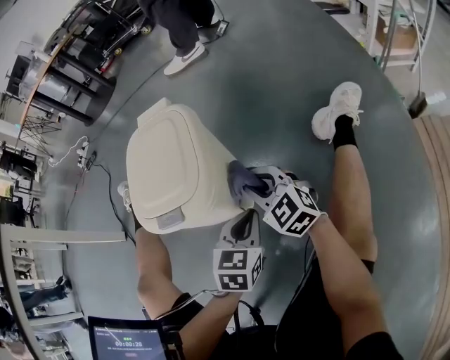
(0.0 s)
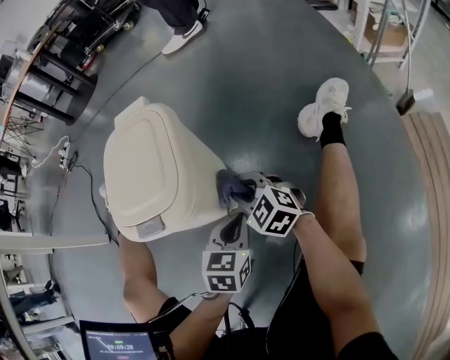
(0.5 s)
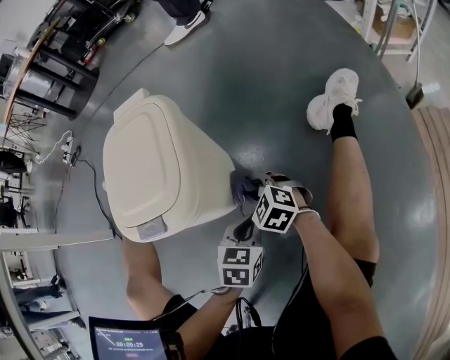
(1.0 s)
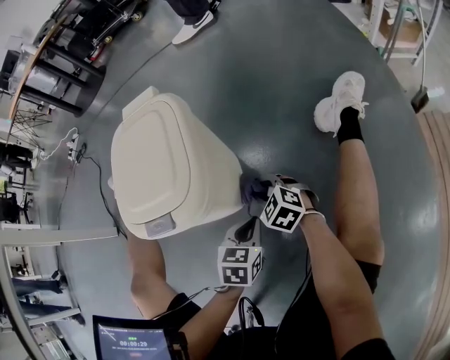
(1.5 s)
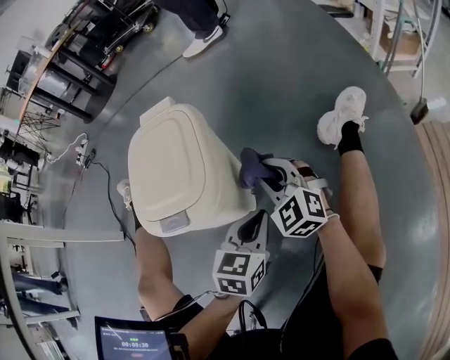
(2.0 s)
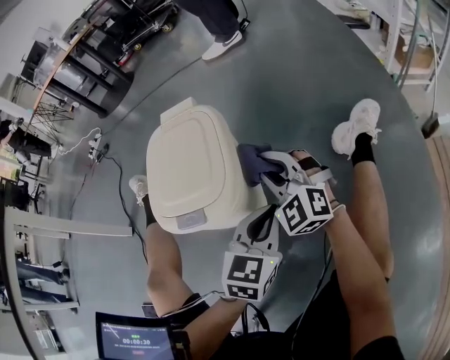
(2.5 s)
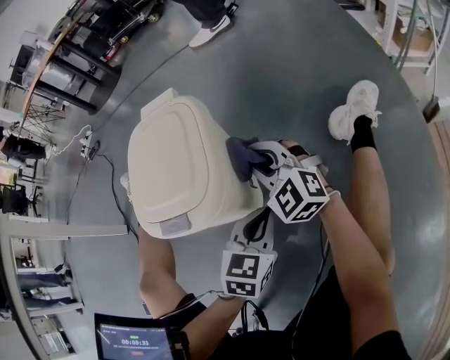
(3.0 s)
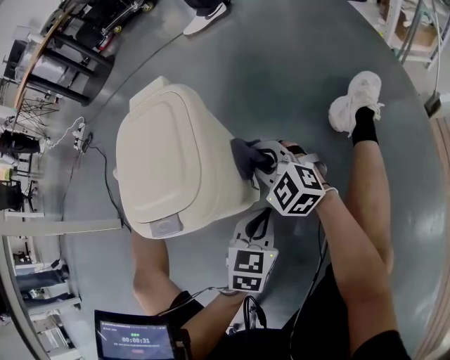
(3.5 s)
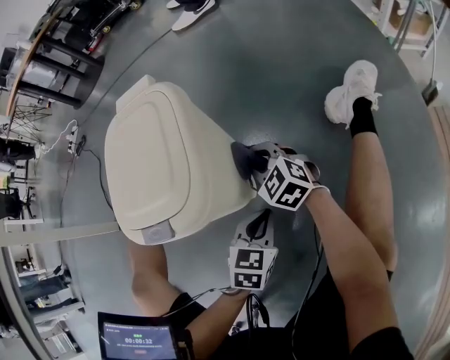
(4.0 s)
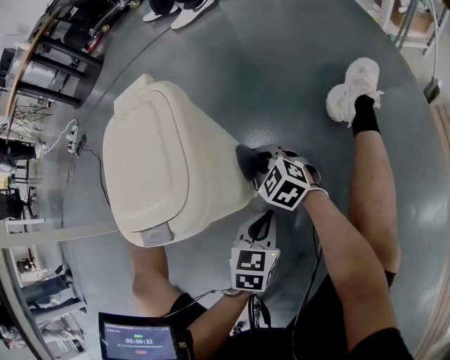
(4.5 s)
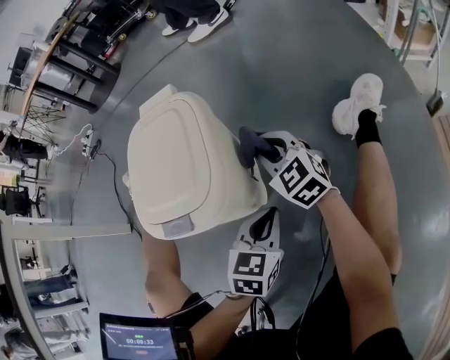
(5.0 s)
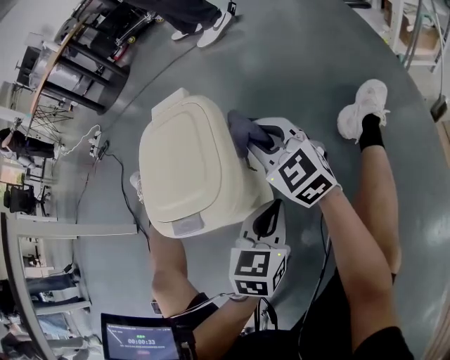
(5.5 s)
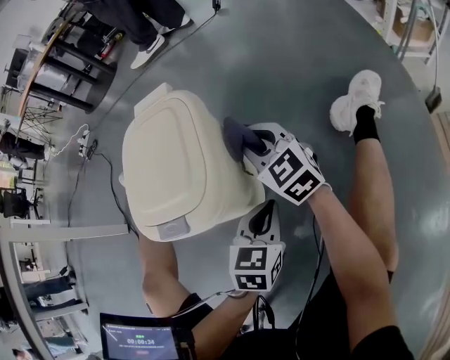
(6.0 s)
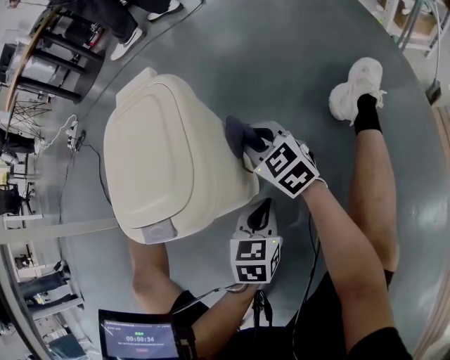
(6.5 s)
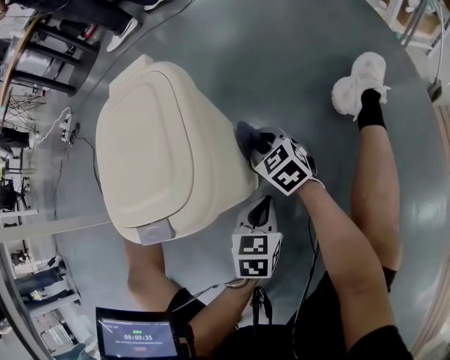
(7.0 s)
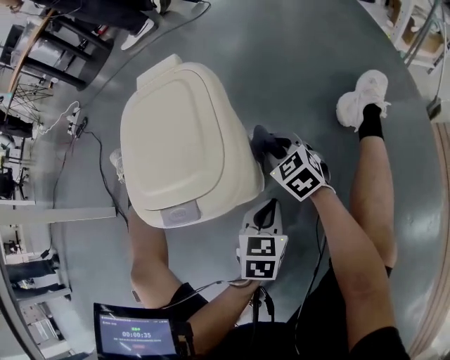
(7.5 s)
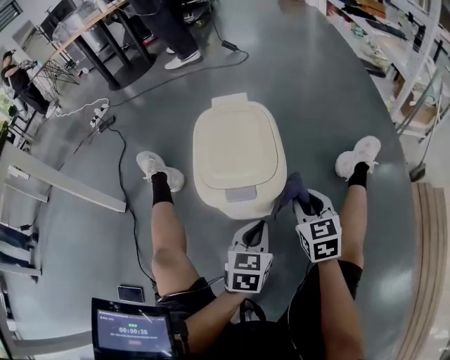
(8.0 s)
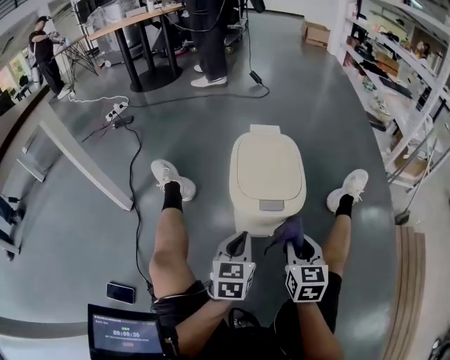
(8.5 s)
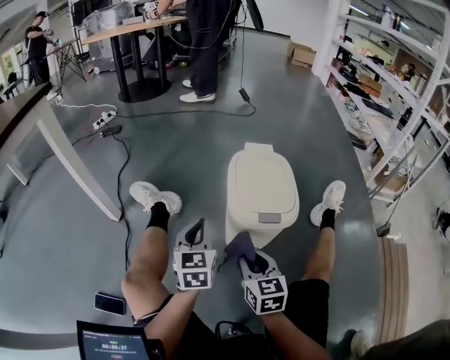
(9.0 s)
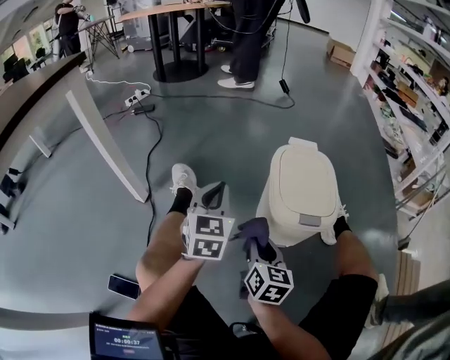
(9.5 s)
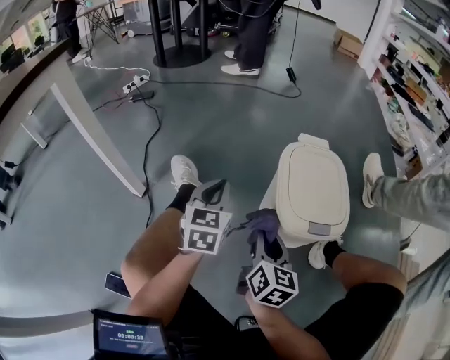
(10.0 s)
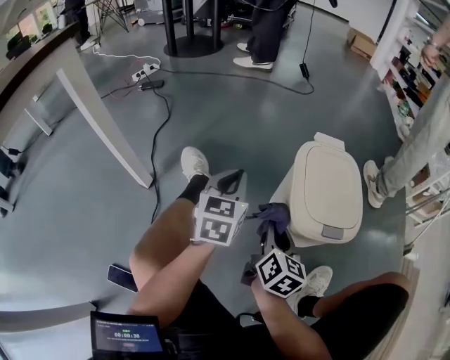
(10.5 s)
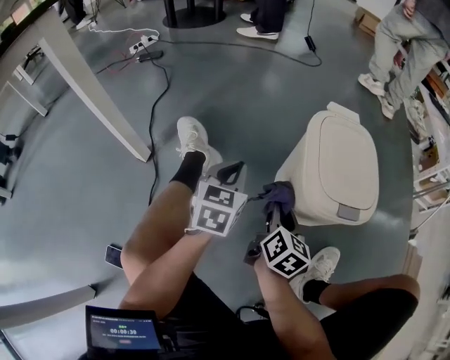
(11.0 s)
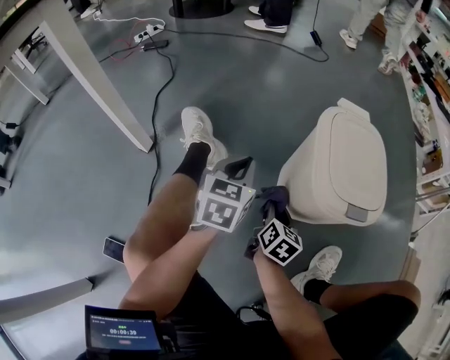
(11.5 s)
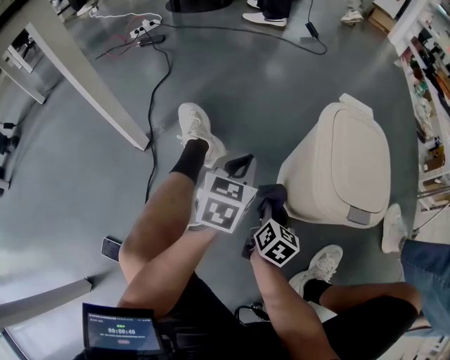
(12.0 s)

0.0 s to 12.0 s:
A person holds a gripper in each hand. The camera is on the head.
0.0 to 2.0 s: The right gripper goes downward and returns, some 15 cm each way, while the left gripper goes downward and returns, some 10 cm each way.
2.0 to 4.0 s: The two grippers go some 10 cm downward.
4.0 to 6.0 s: The left gripper shifts some 5 cm upward. The right gripper moves up and down over some 20 cm, changing direction 2 times, and rotates roughly 20 degrees.
6.0 to 8.0 s: The right gripper shifts approximately 15 cm backward, reaches about 15 cm downward, then returns, and changes its angle by about 20 degrees; the left gripper goes about 10 cm to the left and upward.
8.0 to 10.0 s: The left gripper is displaced to the left and forward by roughly 35 cm, and swivels some 20 degrees, while the right gripper travels to the left by about 30 cm, and changes its angle by roughly 30 degrees.
10.0 to 12.0 s: The right gripper moves downward, roughly 20 cm; the left gripper goes about 10 cm downward.

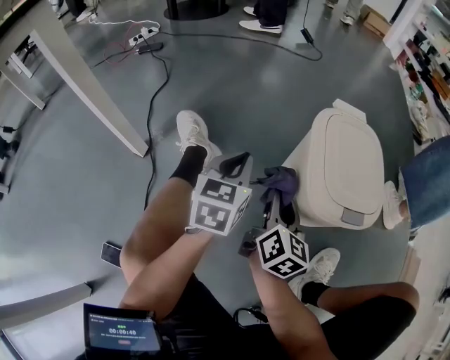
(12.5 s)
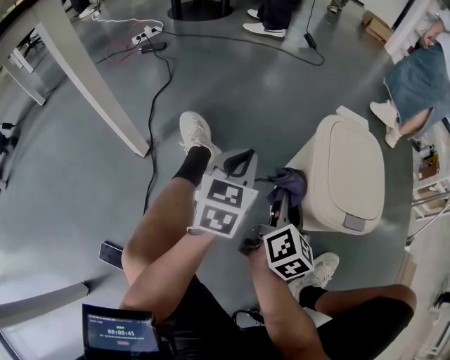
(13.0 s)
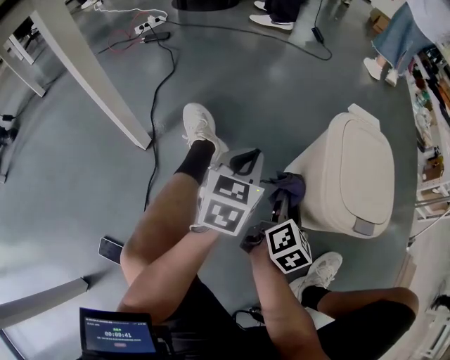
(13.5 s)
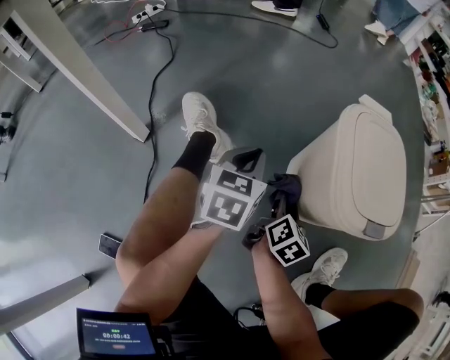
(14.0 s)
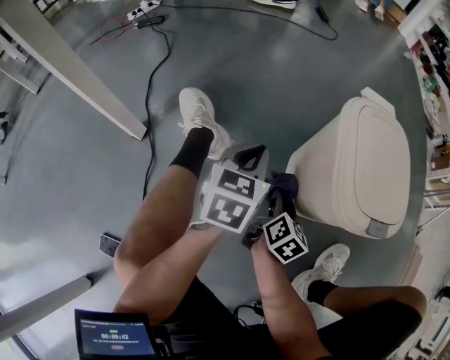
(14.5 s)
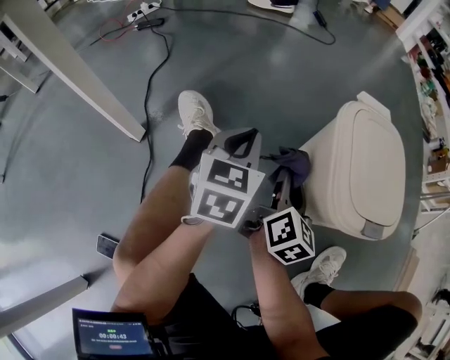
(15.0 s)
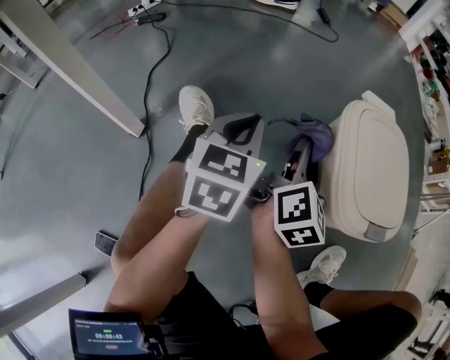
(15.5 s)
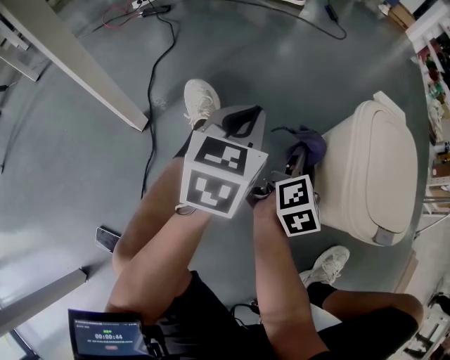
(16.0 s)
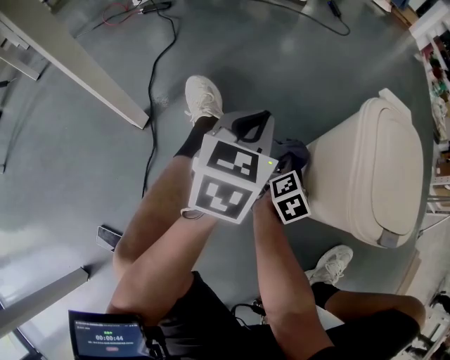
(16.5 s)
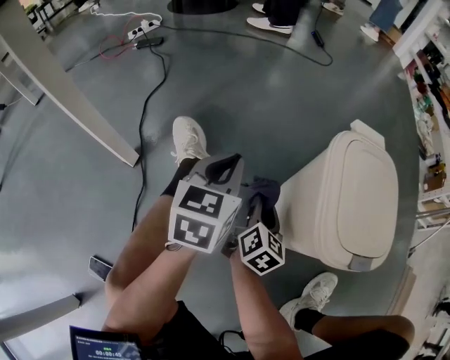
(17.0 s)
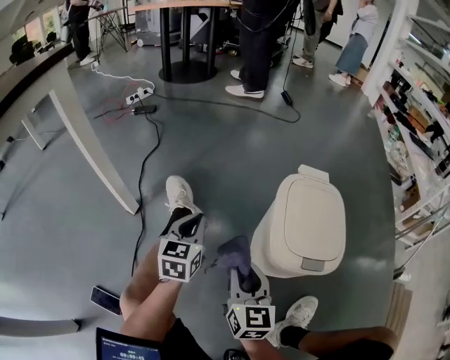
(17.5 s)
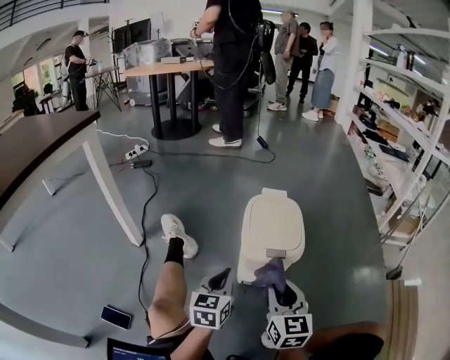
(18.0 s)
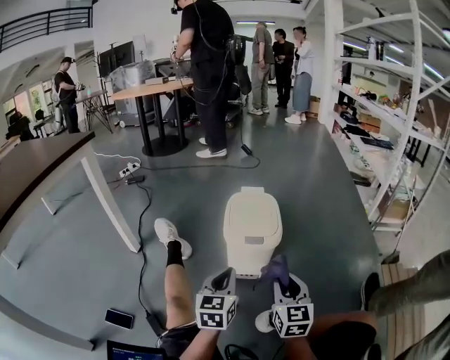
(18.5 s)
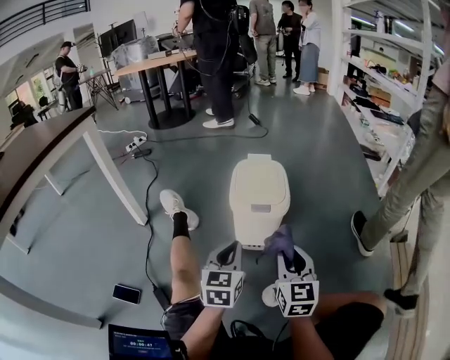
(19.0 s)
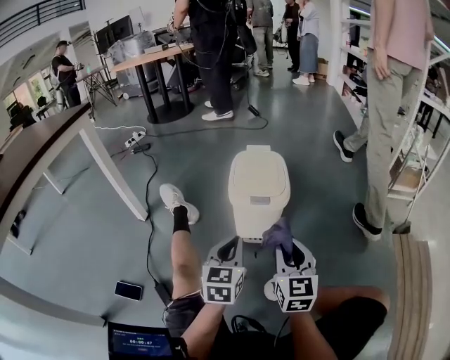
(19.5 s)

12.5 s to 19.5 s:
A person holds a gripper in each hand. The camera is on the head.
12.5 to 14.5 s: The left gripper shifts approximately 5 cm downward. Meanwhile the right gripper travels downward by approximately 15 cm.
14.5 to 16.0 s: The right gripper is displaced upward and forward by some 15 cm; the left gripper travels upward and to the left by some 10 cm.
16.0 to 17.5 s: The left gripper goes about 5 cm backward, while the right gripper goes approximately 20 cm backward and upward, and turns by some 50 degrees.
17.5 to 19.5 s: The two grippers go some 30 cm to the right and backward.

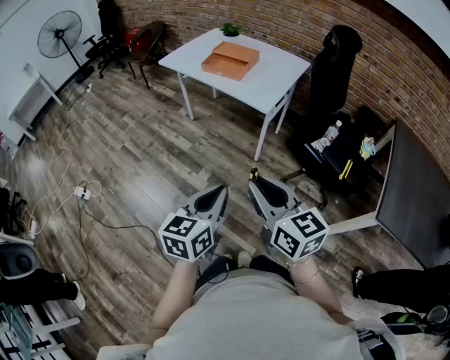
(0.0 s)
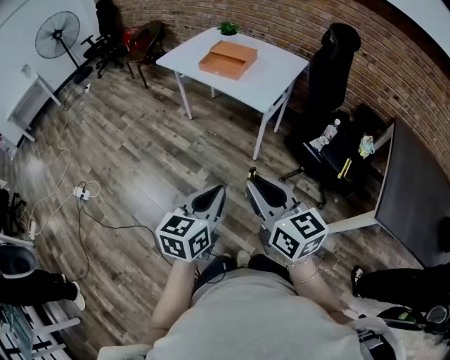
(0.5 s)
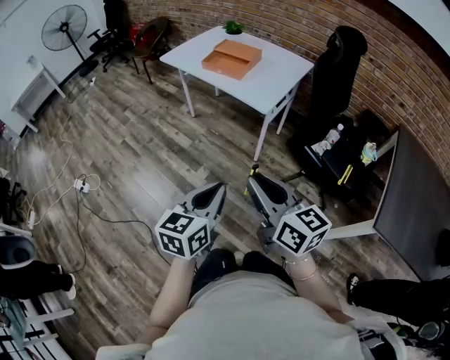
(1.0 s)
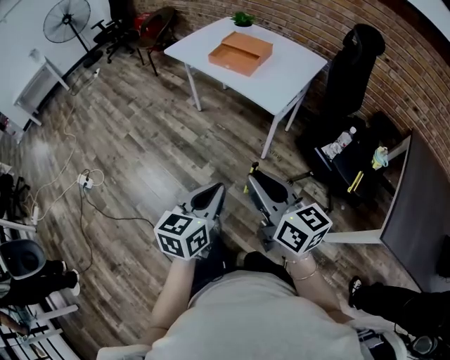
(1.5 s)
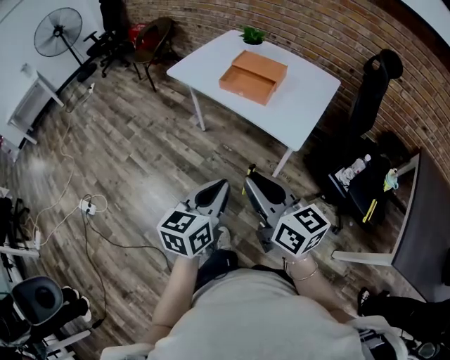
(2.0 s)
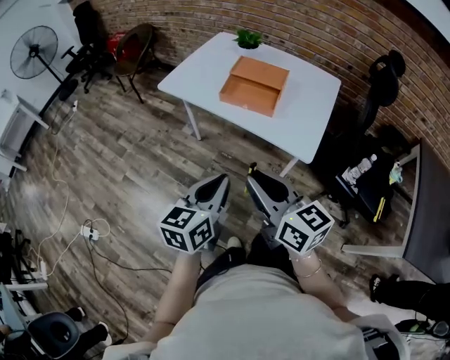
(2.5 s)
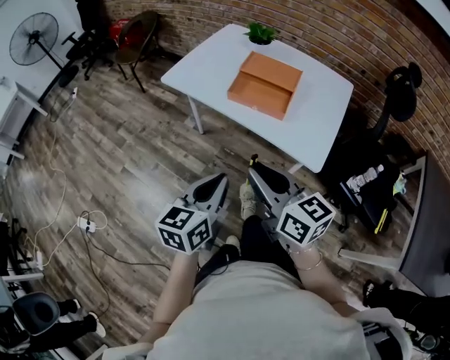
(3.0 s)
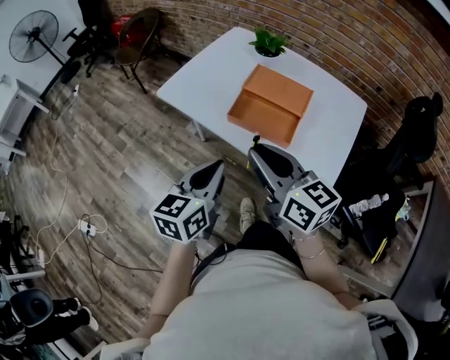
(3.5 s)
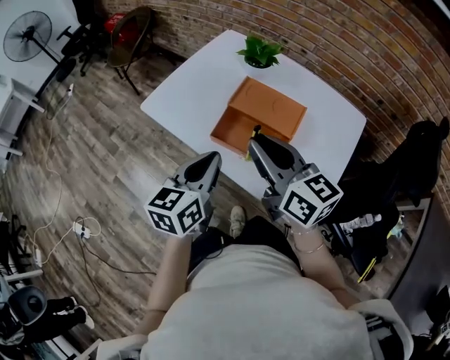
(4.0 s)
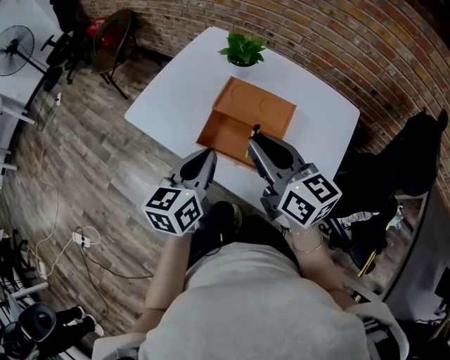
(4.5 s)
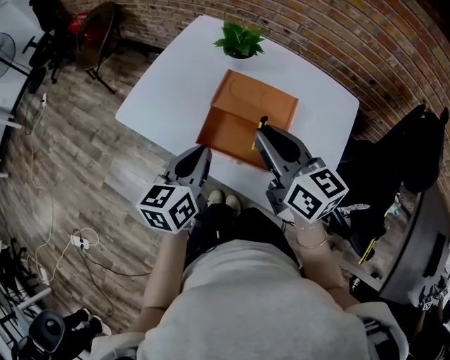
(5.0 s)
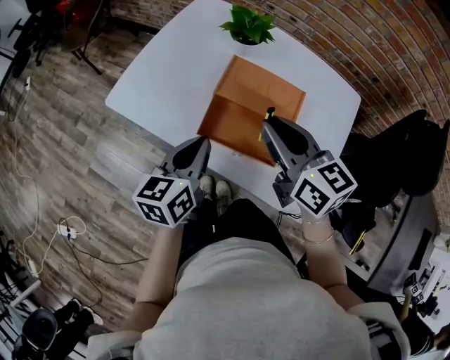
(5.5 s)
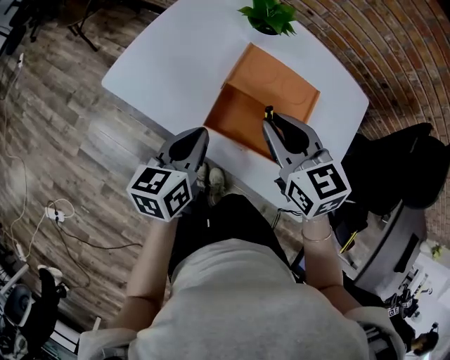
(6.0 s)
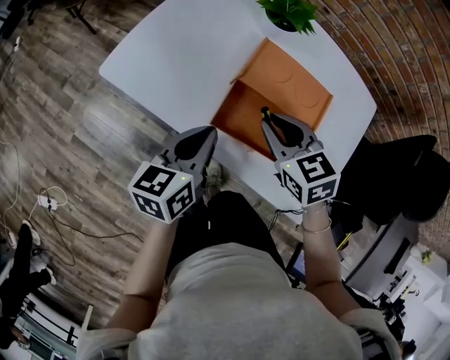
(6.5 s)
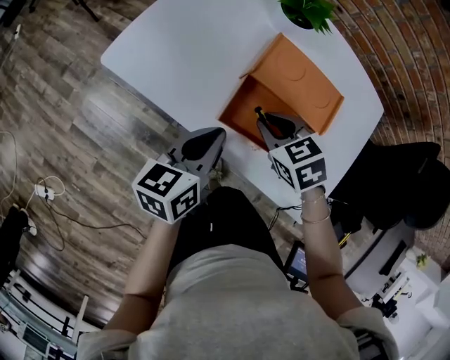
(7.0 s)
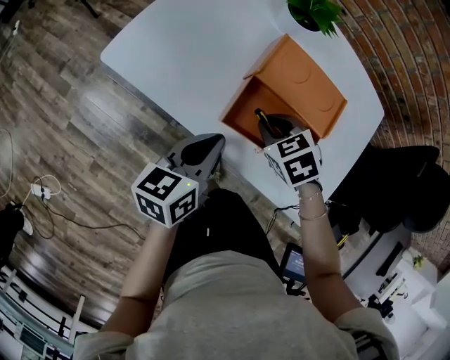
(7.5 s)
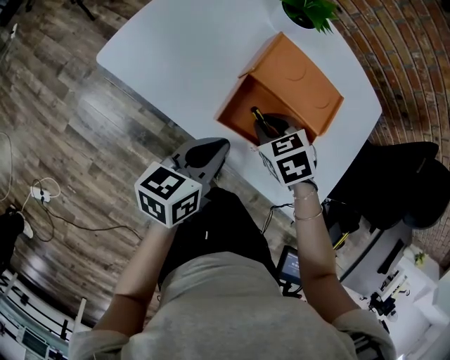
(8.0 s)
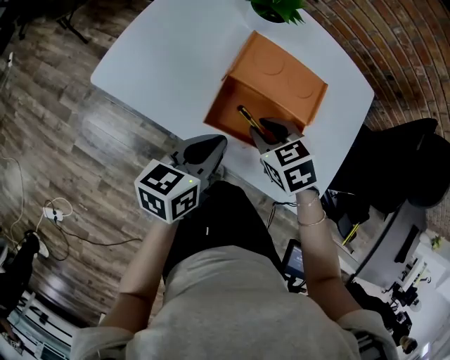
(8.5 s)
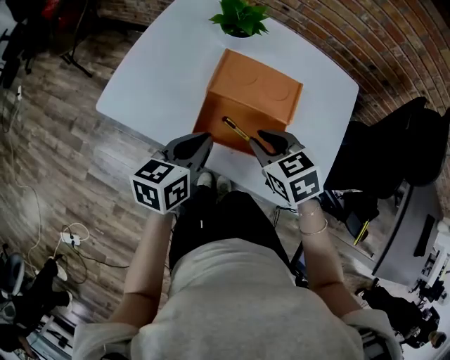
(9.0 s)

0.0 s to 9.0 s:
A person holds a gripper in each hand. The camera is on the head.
0.0 to 2.0 s: Both grippers move forward, about 25 cm.
2.0 to 4.5 s: The two grippers travel together, forward, roughly 50 cm.
4.5 to 7.0 s: The right gripper shifts roughly 20 cm downward, and tilts its fingers approximately 50 degrees downward; the left gripper moves downward, to the left and forward, some 15 cm.
7.0 to 9.0 s: The right gripper heads to the right and upward, covering about 10 cm. Meanwhile the left gripper changes place by roughly 5 cm.
